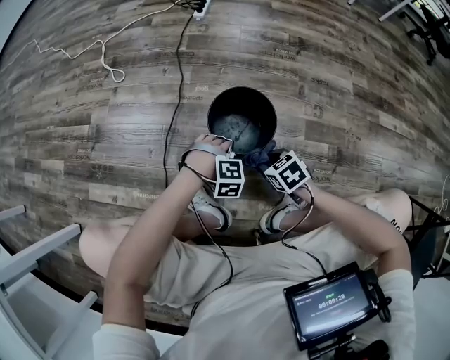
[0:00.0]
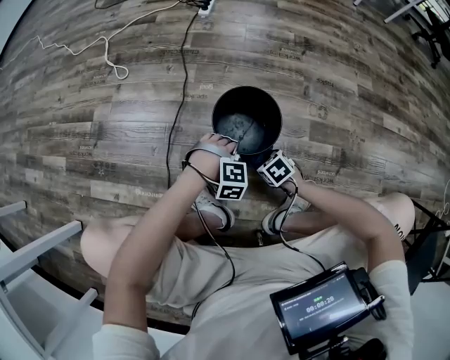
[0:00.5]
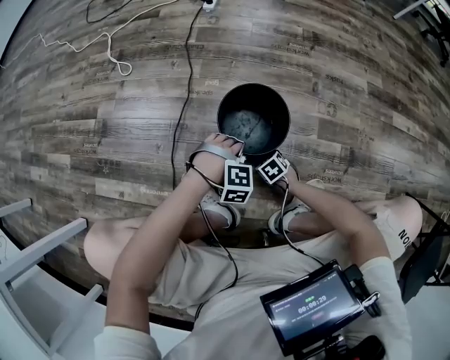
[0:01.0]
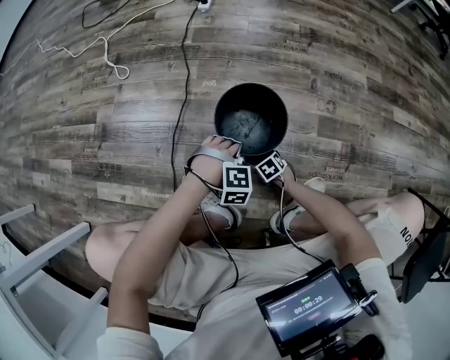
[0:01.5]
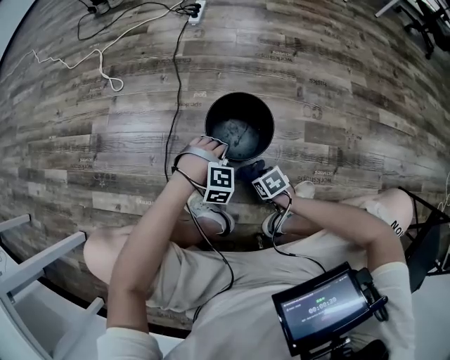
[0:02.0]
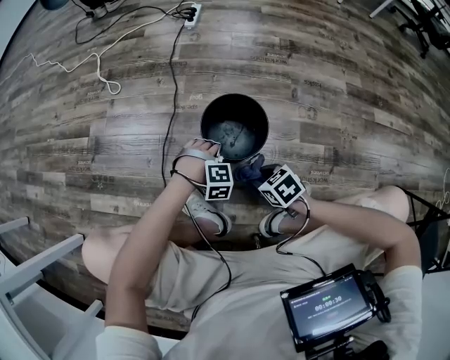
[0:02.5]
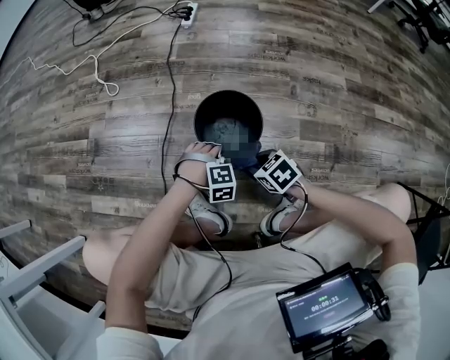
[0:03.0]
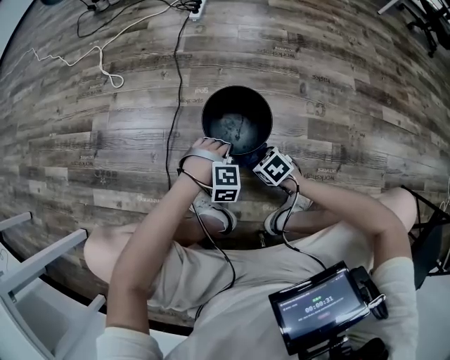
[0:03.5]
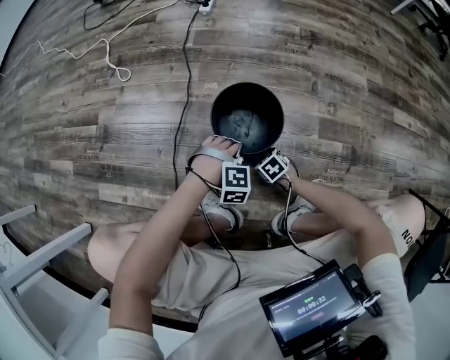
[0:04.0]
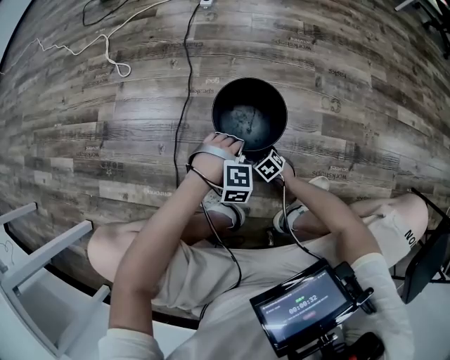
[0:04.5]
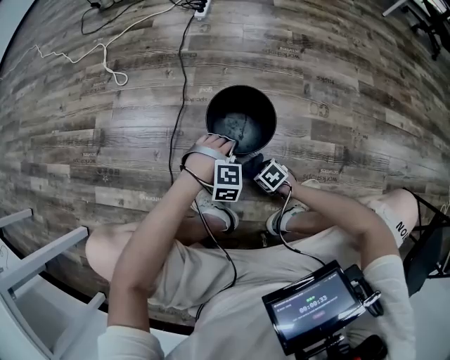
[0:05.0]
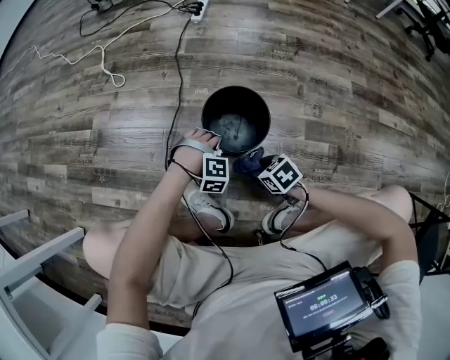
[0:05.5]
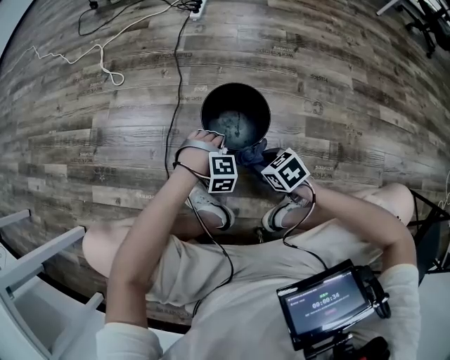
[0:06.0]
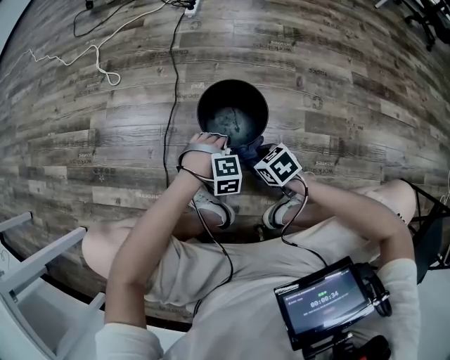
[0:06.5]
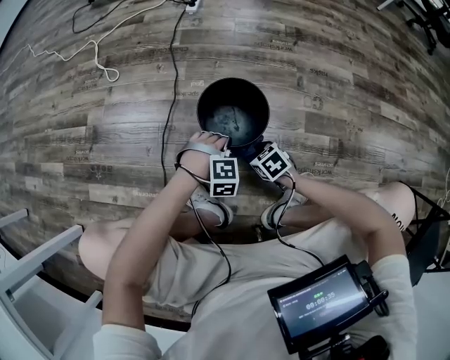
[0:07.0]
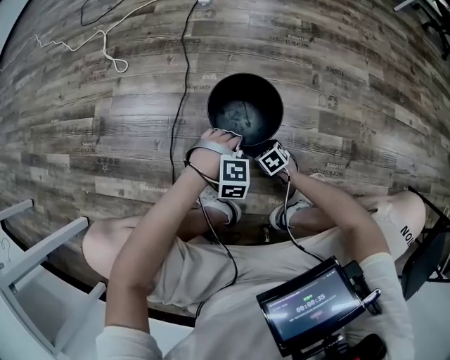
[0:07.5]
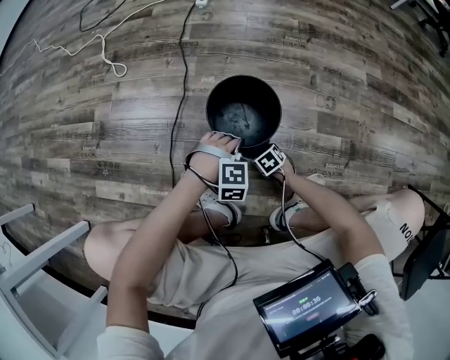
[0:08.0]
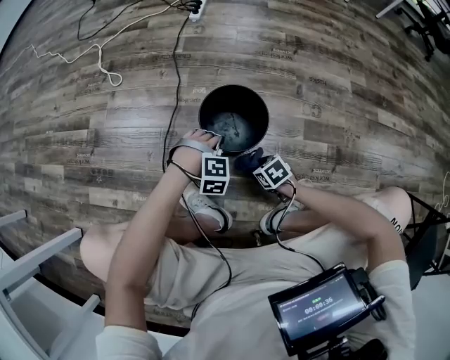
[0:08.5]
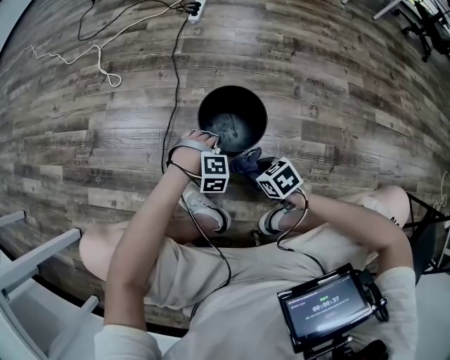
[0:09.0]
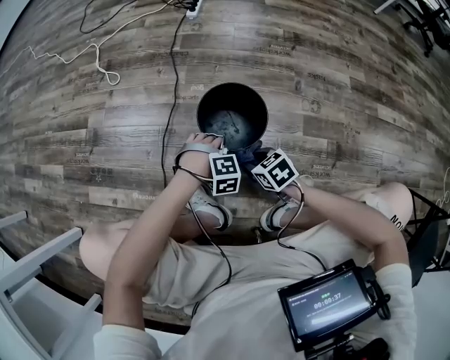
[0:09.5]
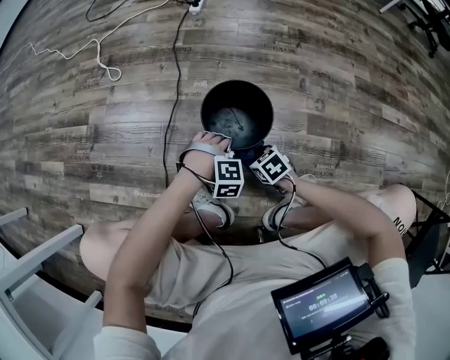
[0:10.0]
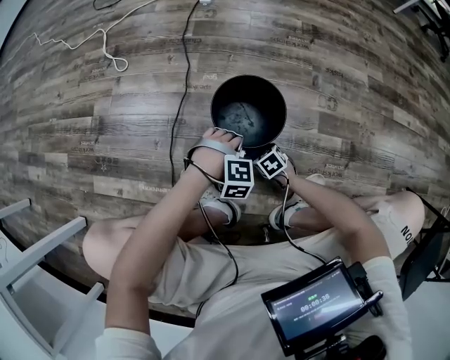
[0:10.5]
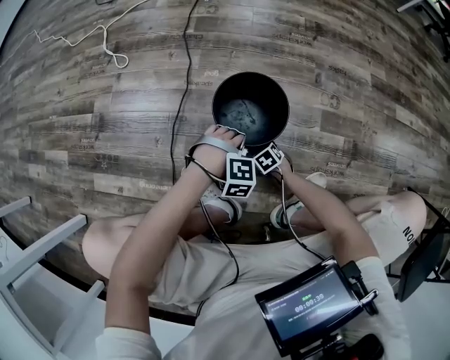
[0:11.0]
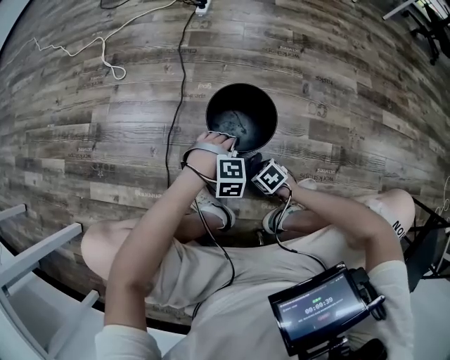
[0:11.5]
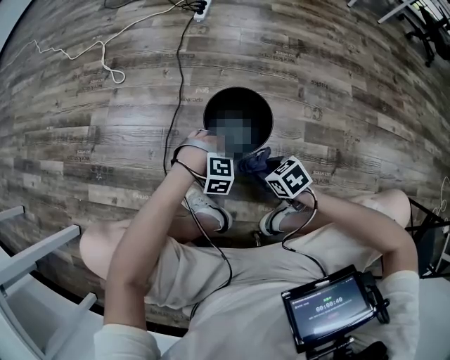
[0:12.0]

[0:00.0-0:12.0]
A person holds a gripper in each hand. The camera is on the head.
0:00.0 to 0:02.0: The right gripper heads downward, covering about 10 cm.
0:02.0 to 0:04.0: The right gripper is displaced downward by about 5 cm.
0:04.0 to 0:06.0: The right gripper shifts some 20 cm upward.
0:06.0 to 0:08.0: The right gripper heads downward, covering approximately 20 cm.
0:08.0 to 0:10.0: The right gripper heads upward, covering about 15 cm.
0:10.0 to 0:12.0: The right gripper moves some 15 cm downward and comes back.

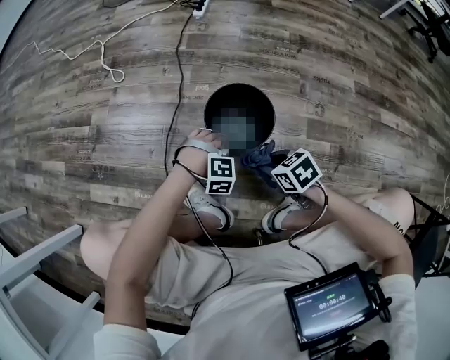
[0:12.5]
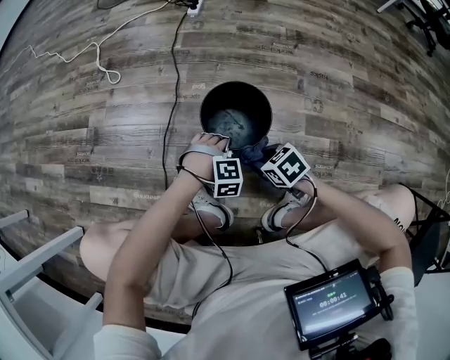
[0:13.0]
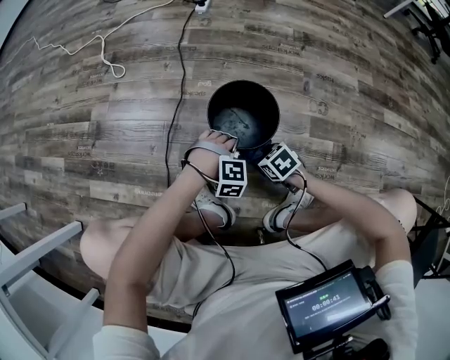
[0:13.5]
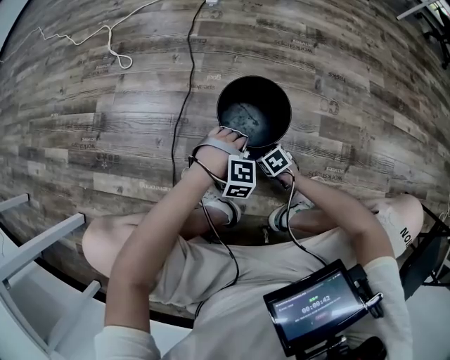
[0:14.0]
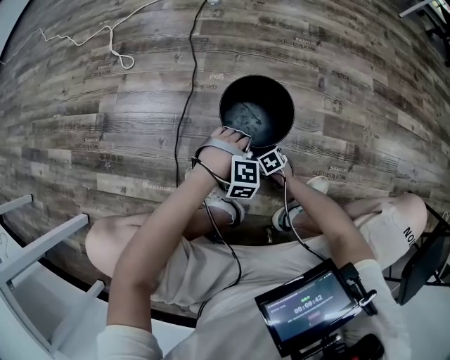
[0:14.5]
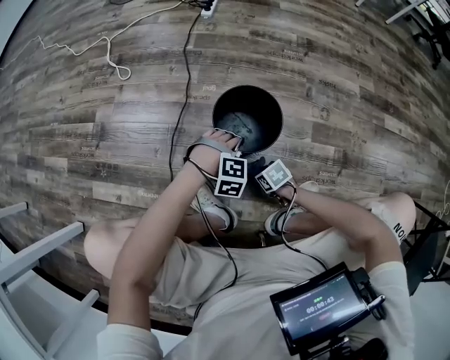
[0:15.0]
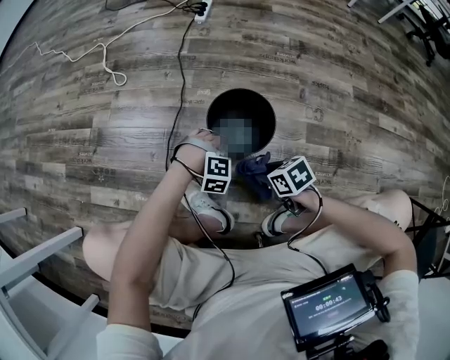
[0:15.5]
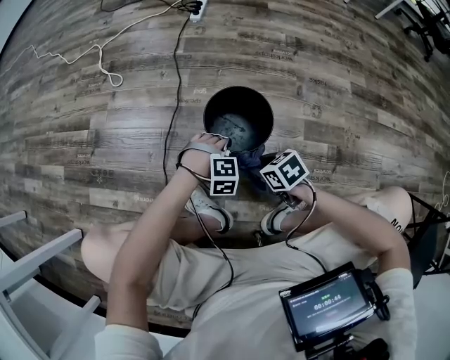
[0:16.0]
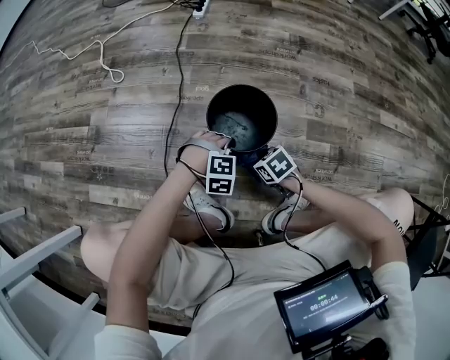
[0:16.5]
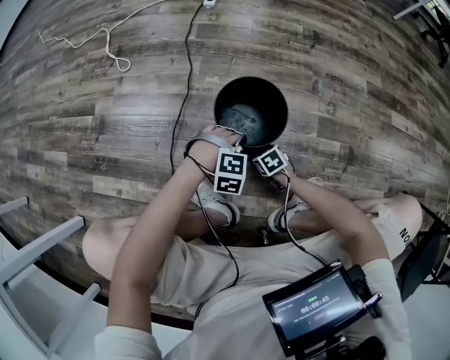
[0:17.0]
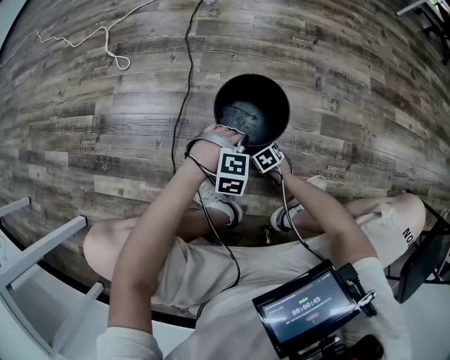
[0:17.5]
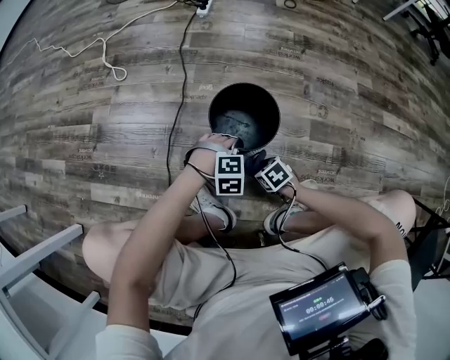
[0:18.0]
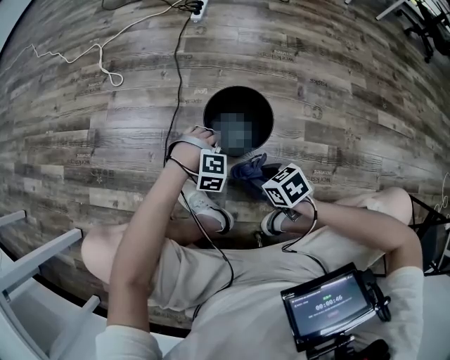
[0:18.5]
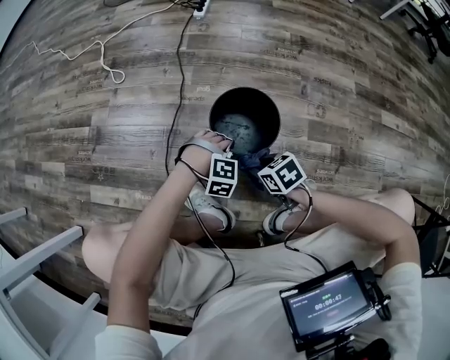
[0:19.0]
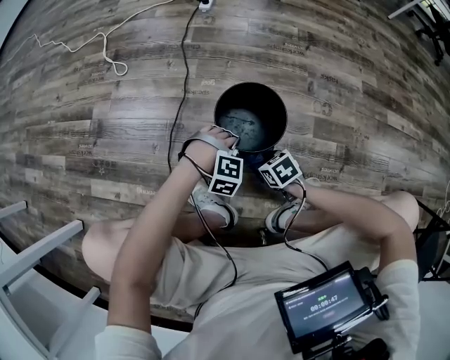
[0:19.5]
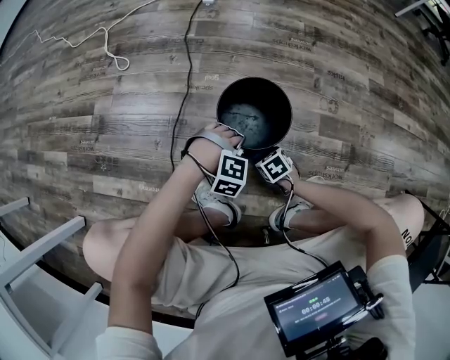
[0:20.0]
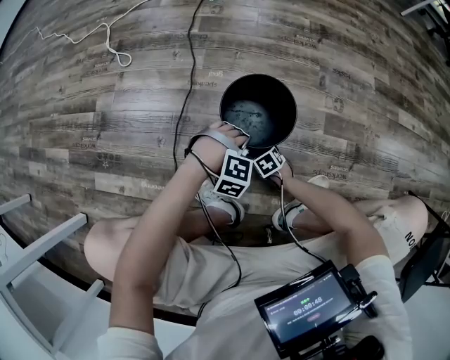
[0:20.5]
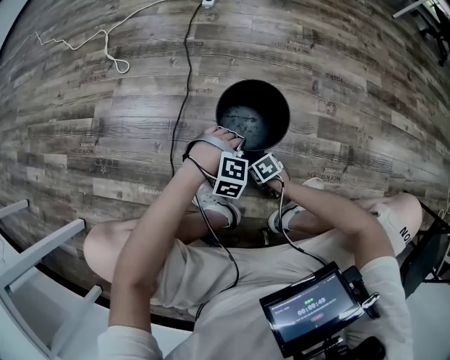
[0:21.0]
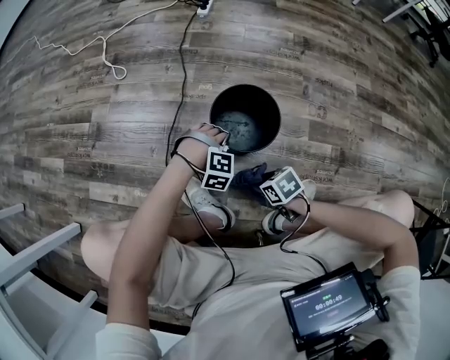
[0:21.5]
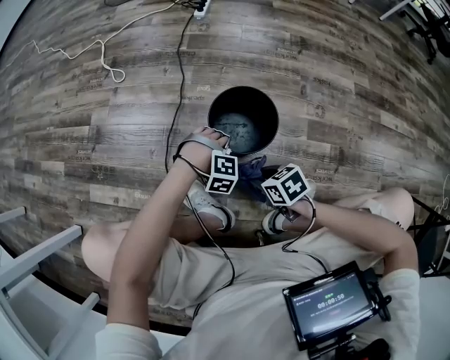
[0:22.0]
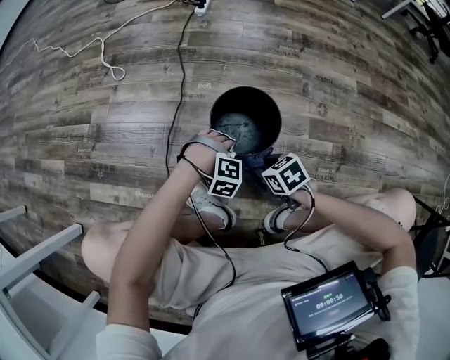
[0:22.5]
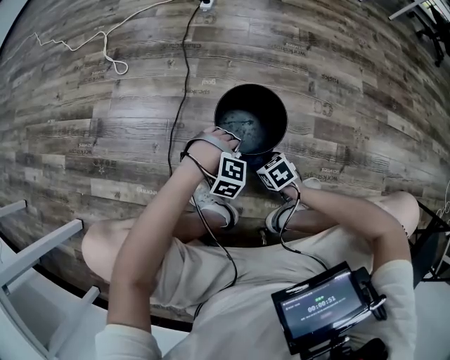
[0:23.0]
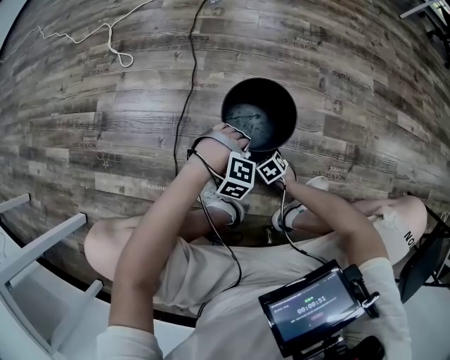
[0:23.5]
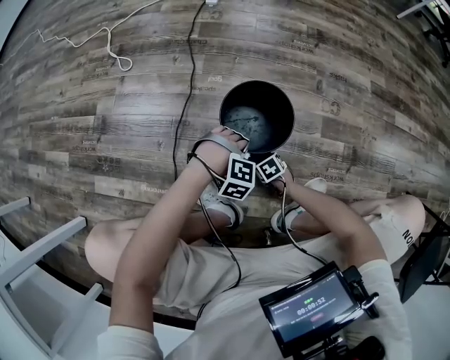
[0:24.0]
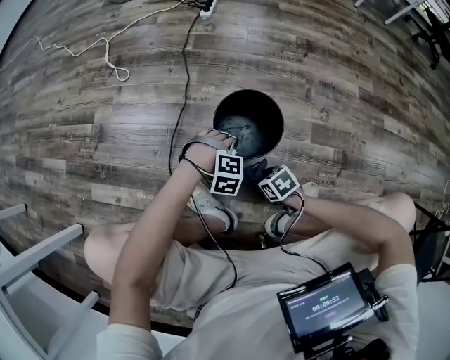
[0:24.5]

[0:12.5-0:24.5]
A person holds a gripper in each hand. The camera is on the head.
0:12.5 to 0:14.5: The right gripper is displaced downward by some 25 cm.
0:14.5 to 0:16.5: The right gripper shifts some 15 cm upward.
0:16.5 to 0:18.5: The right gripper reaches about 15 cm downward, then returns.
0:18.5 to 0:20.5: The right gripper shifts about 25 cm downward.
0:20.5 to 0:22.5: The right gripper shifts approximately 20 cm upward.
0:22.5 to 0:24.5: The right gripper moves roughly 20 cm downward and comes back.

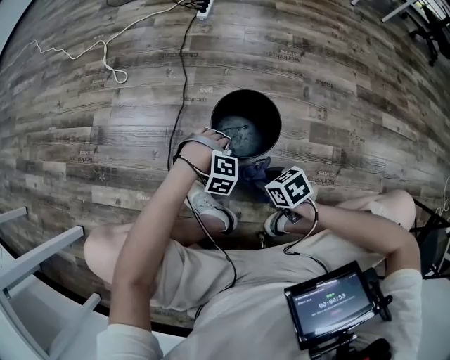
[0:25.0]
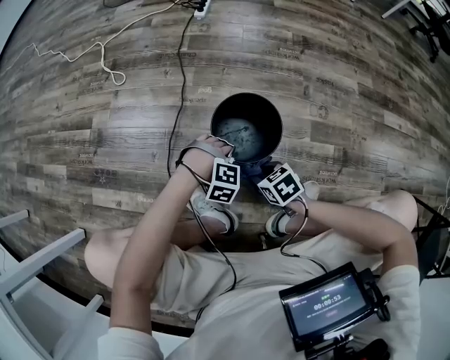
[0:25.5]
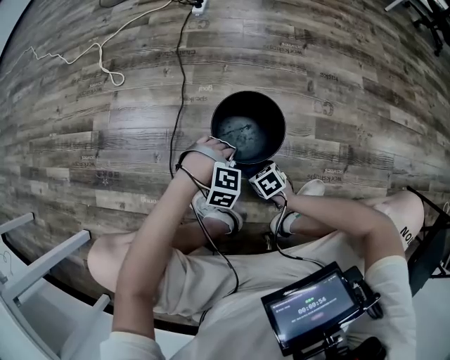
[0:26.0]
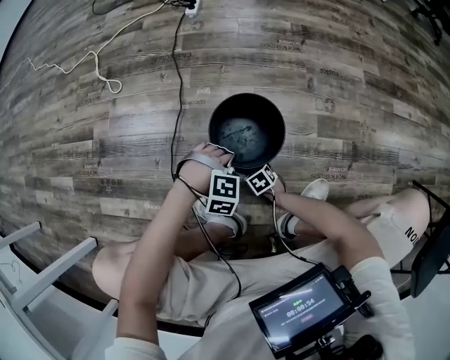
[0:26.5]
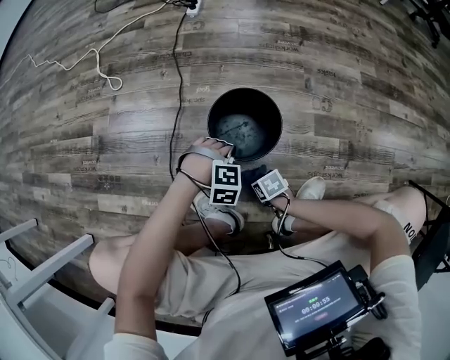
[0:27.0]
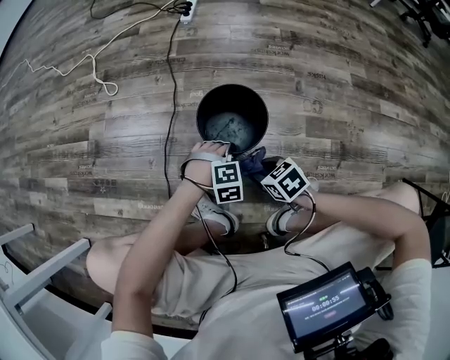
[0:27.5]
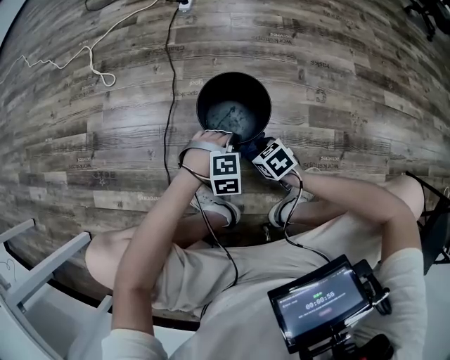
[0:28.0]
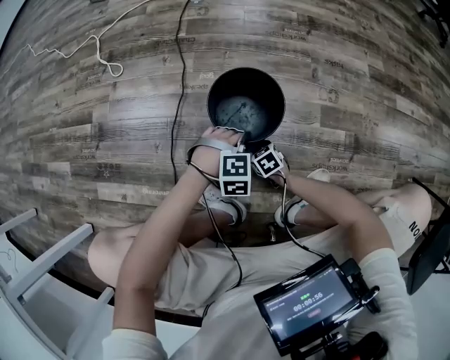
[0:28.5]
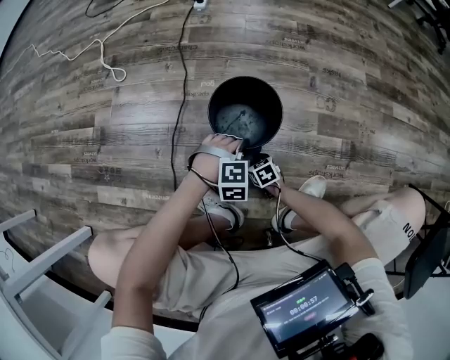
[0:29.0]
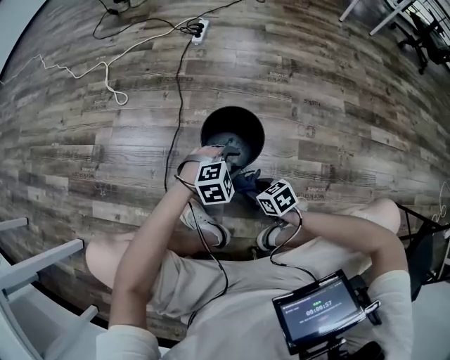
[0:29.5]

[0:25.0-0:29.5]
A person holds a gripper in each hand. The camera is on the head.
0:25.0 to 0:27.0: The right gripper travels downward by approximately 15 cm.
0:27.0 to 0:29.5: The right gripper swings up and down, roughly 20 cm each way, with 2 reversals, and swivels approximately 20 degrees.
